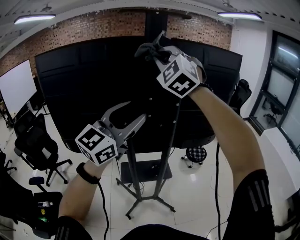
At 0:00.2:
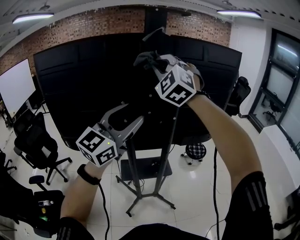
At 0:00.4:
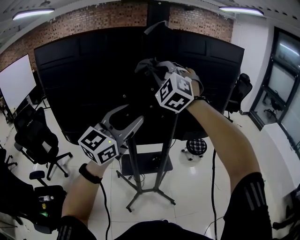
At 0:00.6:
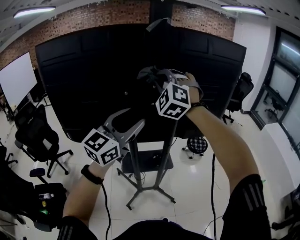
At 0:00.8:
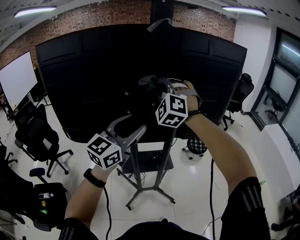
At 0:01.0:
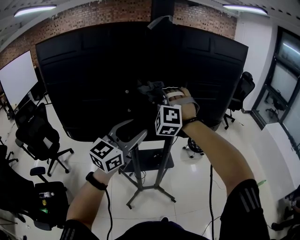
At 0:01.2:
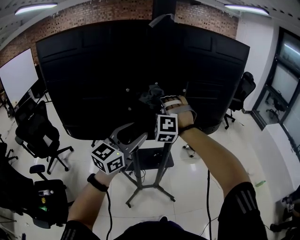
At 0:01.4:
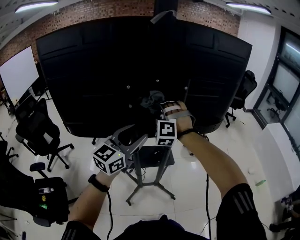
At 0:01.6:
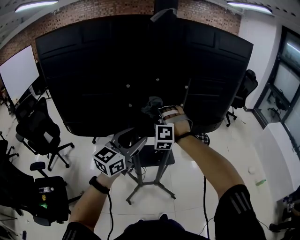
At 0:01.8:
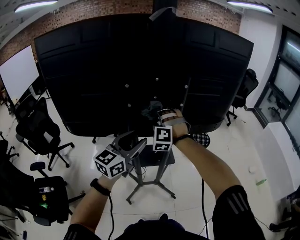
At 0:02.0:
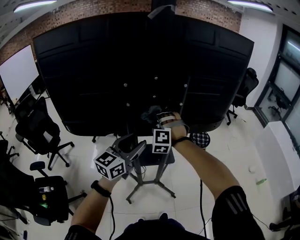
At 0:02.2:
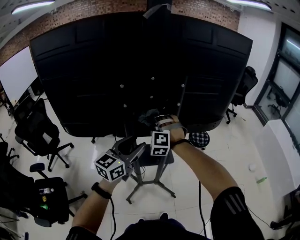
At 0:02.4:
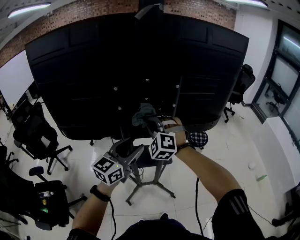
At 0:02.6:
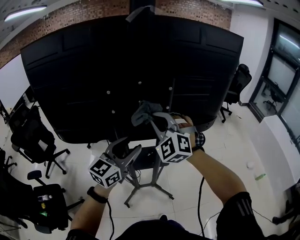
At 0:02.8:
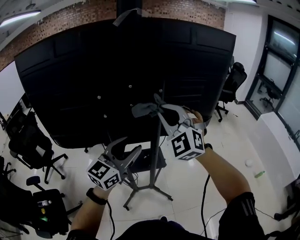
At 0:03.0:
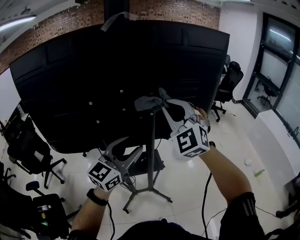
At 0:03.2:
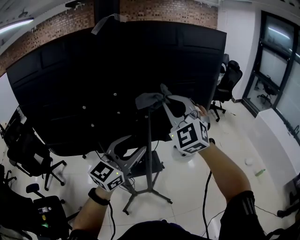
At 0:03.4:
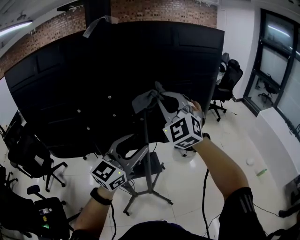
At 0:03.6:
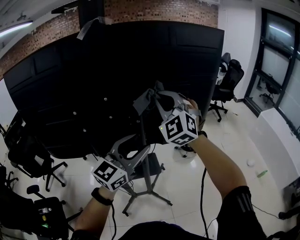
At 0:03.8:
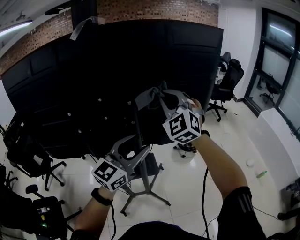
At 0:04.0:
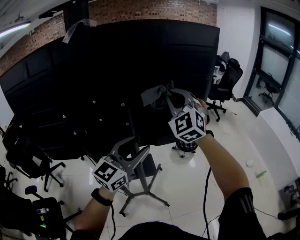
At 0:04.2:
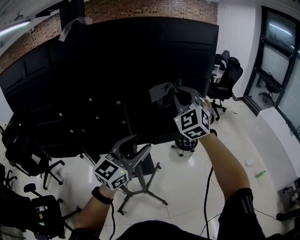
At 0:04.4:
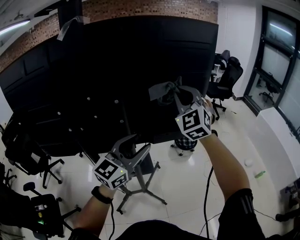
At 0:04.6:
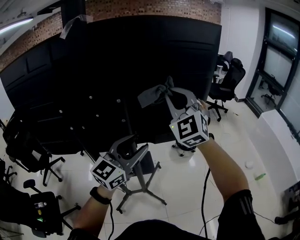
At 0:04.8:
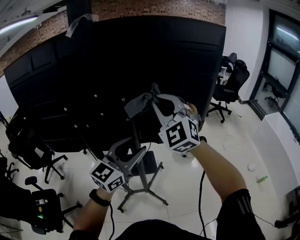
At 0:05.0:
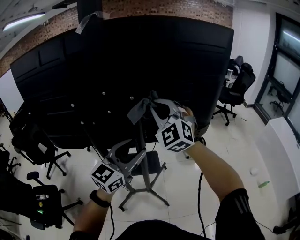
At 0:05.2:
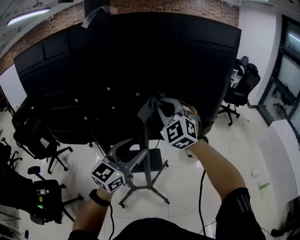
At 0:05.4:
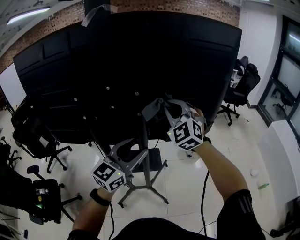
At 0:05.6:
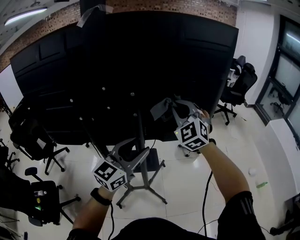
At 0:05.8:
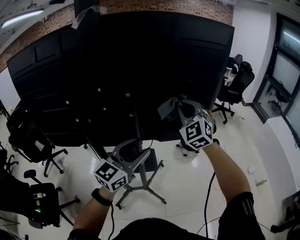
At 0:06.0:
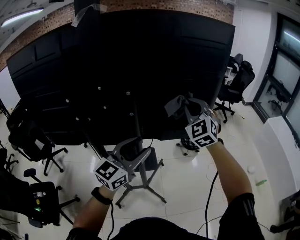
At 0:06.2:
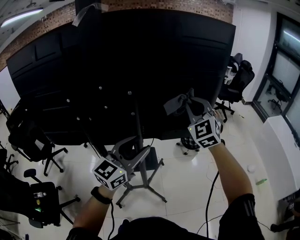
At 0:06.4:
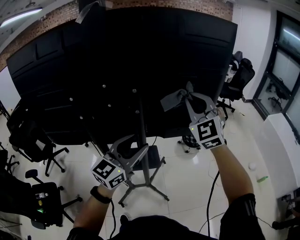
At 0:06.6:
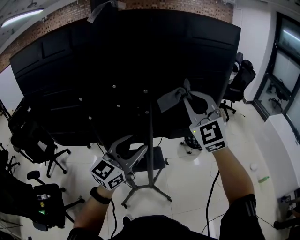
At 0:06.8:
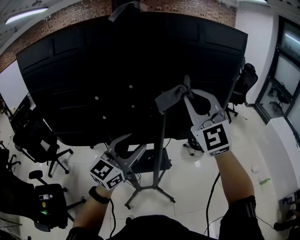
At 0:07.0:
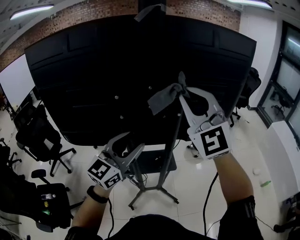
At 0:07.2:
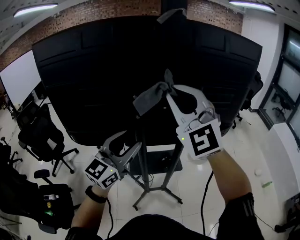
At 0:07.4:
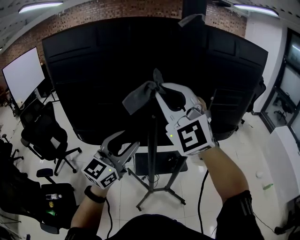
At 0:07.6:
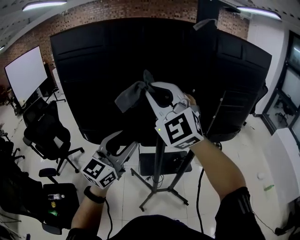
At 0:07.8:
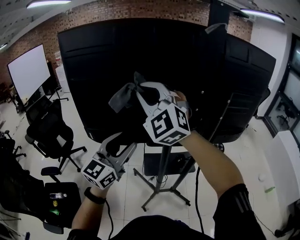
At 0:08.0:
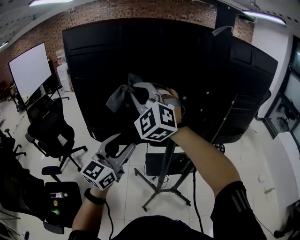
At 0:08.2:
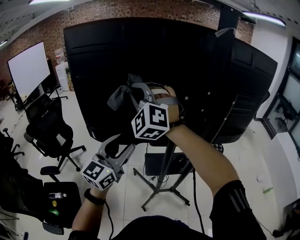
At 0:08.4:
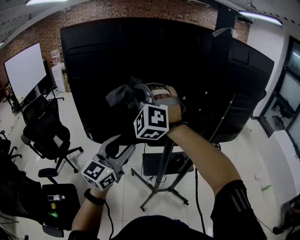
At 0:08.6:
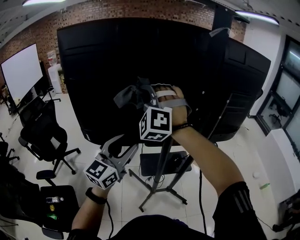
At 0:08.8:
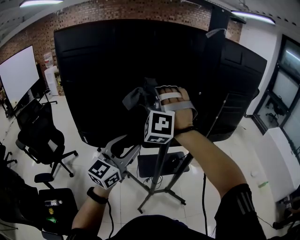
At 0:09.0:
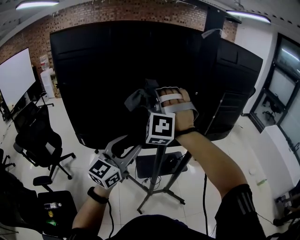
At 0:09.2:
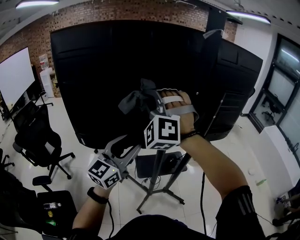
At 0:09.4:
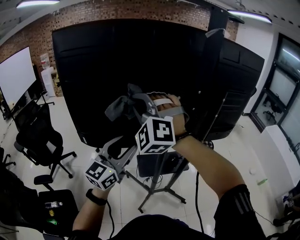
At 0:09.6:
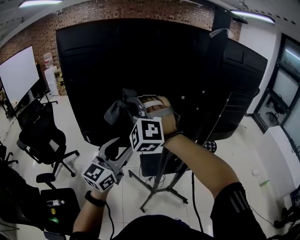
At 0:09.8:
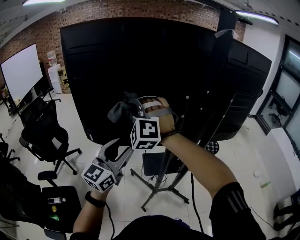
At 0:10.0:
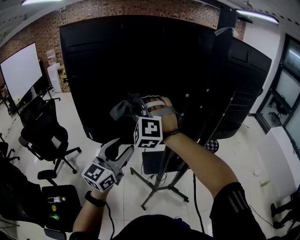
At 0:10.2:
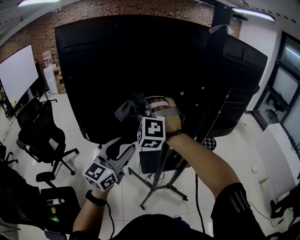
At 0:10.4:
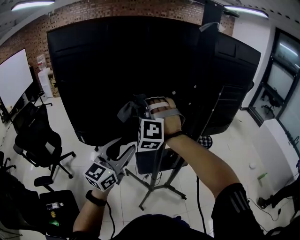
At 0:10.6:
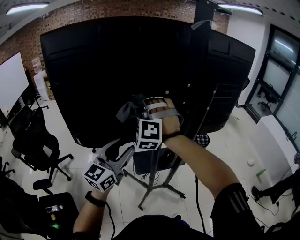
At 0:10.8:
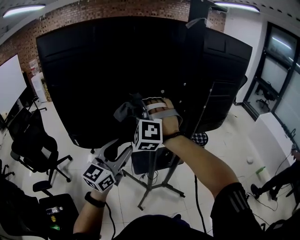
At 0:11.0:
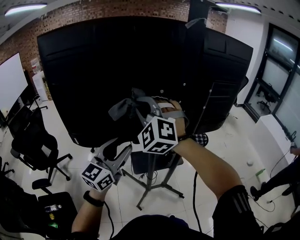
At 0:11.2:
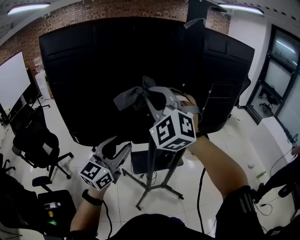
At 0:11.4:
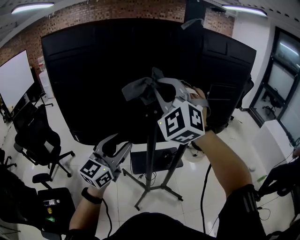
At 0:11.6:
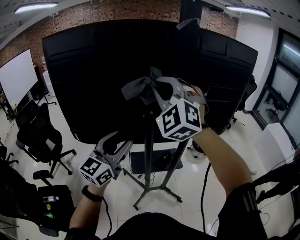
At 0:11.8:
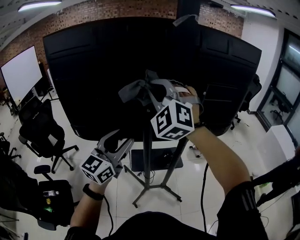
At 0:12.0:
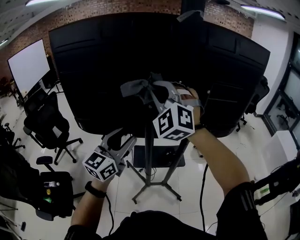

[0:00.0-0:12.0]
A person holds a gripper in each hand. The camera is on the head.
0:00.0 to 0:01.6: The left gripper heads downward, covering roughly 20 cm. Meanwhile the right gripper shifts some 35 cm downward, and rotates about 40 degrees.
0:01.6 to 0:03.0: The right gripper shifts approximately 25 cm upward and to the right, and changes its angle by about 50 degrees; the left gripper travels to the right by approximately 10 cm.
0:03.0 to 0:04.4: The right gripper goes about 20 cm forward and to the right. Meanwhile the left gripper travels to the right and forward by roughly 15 cm.
0:04.4 to 0:06.0: The right gripper is displaced downward by some 10 cm, and travels to the left and back again, about 15 cm each way.
0:06.0 to 0:07.6: The right gripper shifts about 50 cm to the left and backward, and swivels approximately 30 degrees; the left gripper goes roughly 35 cm to the left.
0:07.6 to 0:09.0: The right gripper is displaced forward and downward by roughly 10 cm, travels to the left and back again, about 15 cm each way, and changes its angle by roughly 60 degrees.
0:09.0 to 0:10.4: The right gripper moves downward, approximately 10 cm, and moves approximately 10 cm to the left and comes back.
0:10.4 to 0:12.0: The right gripper is displaced to the right and upward by approximately 15 cm, and turns by about 30 degrees. The left gripper moves to the right, about 10 cm.

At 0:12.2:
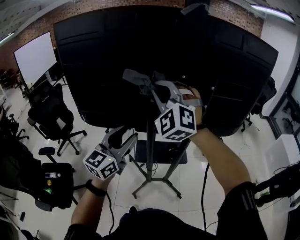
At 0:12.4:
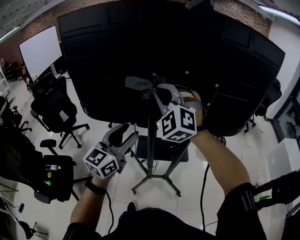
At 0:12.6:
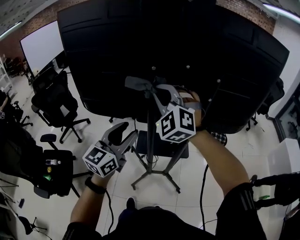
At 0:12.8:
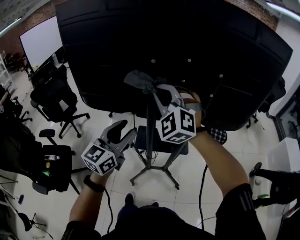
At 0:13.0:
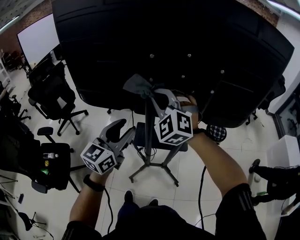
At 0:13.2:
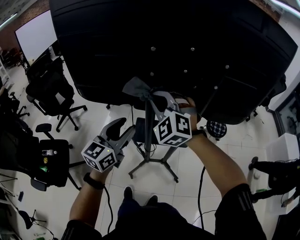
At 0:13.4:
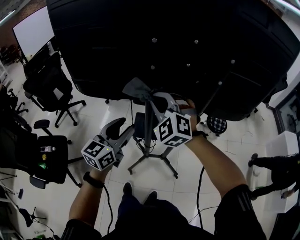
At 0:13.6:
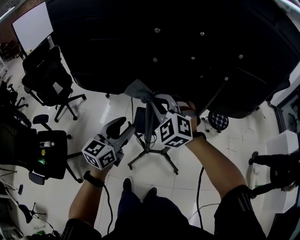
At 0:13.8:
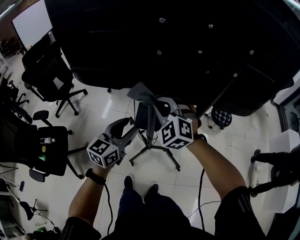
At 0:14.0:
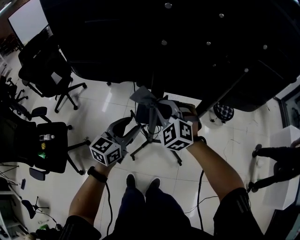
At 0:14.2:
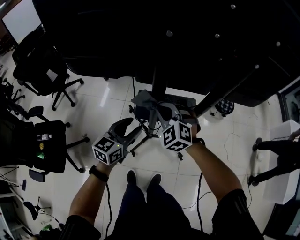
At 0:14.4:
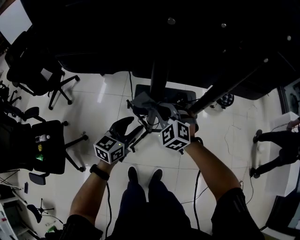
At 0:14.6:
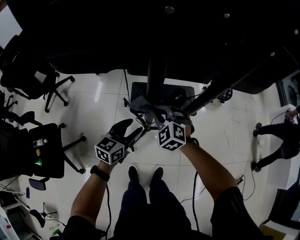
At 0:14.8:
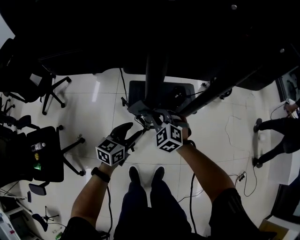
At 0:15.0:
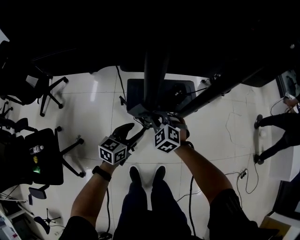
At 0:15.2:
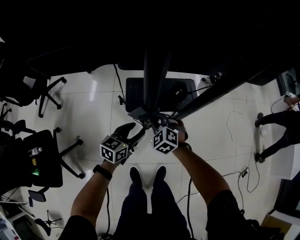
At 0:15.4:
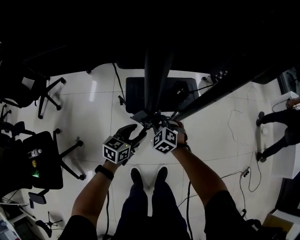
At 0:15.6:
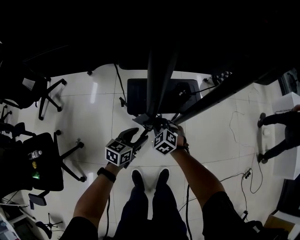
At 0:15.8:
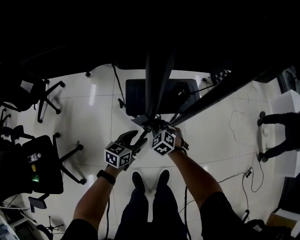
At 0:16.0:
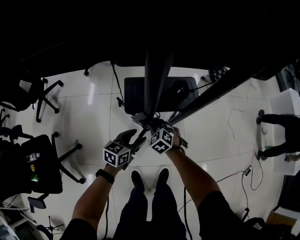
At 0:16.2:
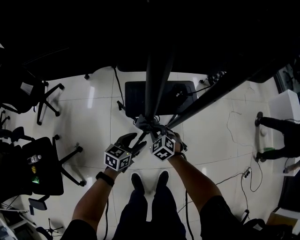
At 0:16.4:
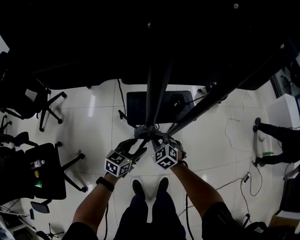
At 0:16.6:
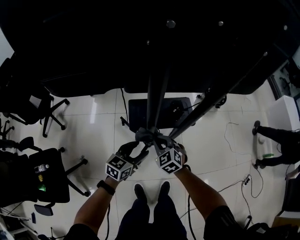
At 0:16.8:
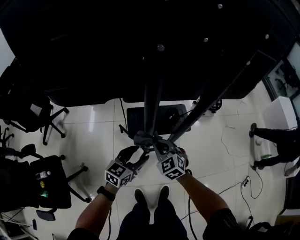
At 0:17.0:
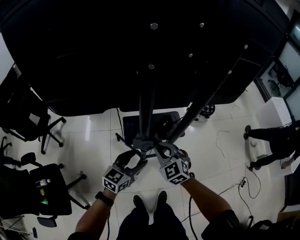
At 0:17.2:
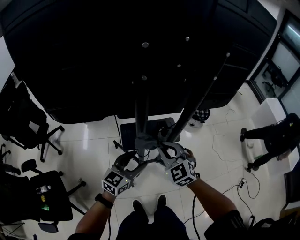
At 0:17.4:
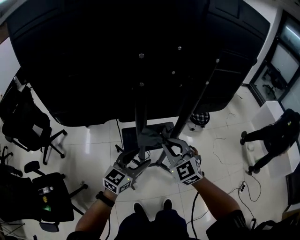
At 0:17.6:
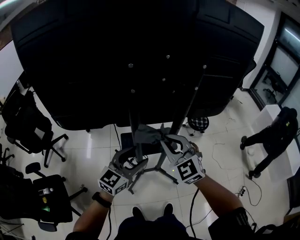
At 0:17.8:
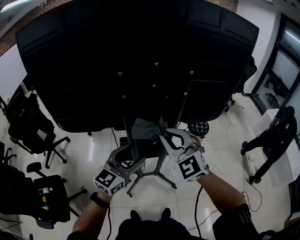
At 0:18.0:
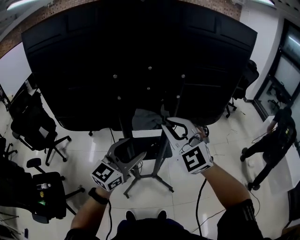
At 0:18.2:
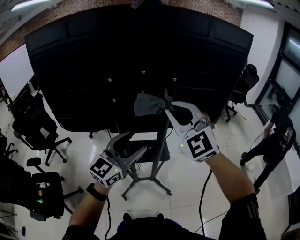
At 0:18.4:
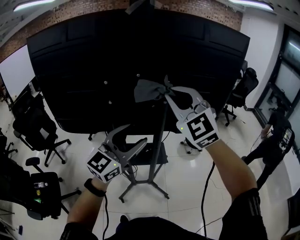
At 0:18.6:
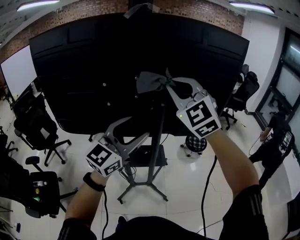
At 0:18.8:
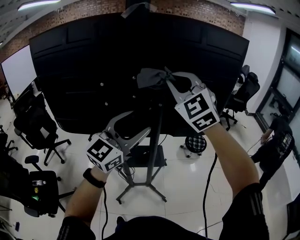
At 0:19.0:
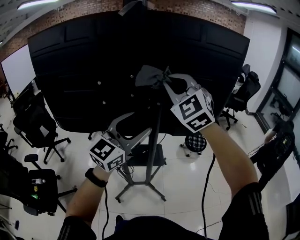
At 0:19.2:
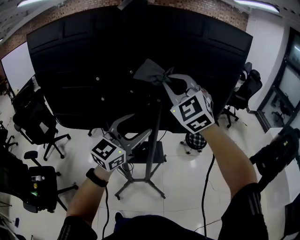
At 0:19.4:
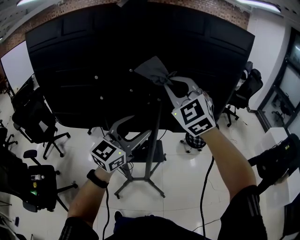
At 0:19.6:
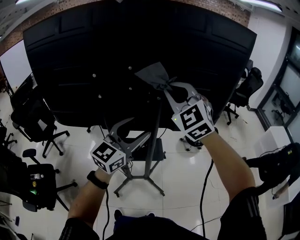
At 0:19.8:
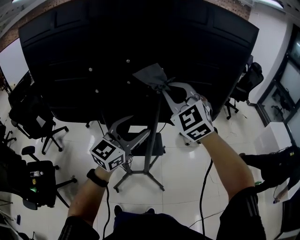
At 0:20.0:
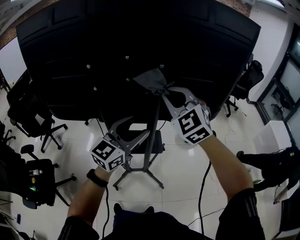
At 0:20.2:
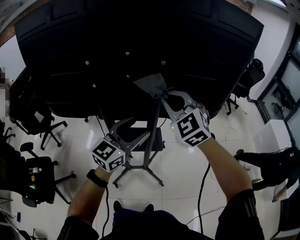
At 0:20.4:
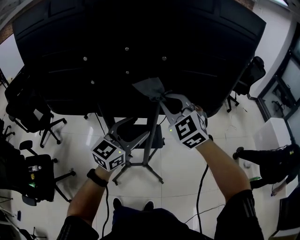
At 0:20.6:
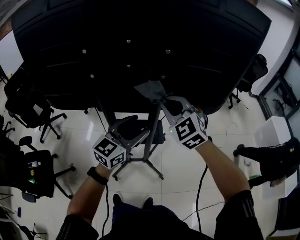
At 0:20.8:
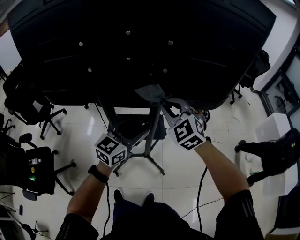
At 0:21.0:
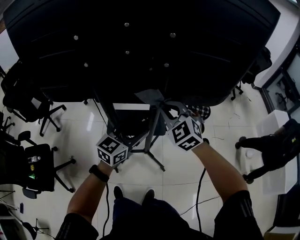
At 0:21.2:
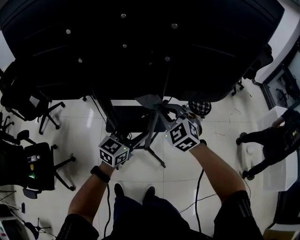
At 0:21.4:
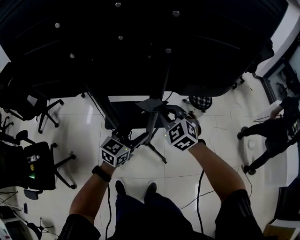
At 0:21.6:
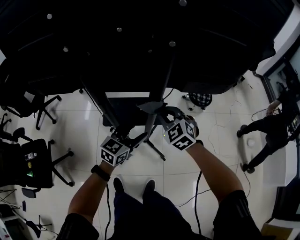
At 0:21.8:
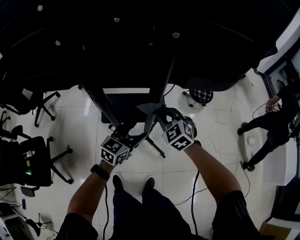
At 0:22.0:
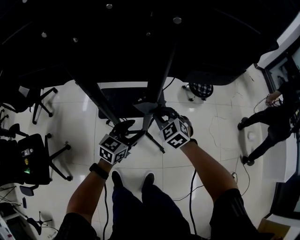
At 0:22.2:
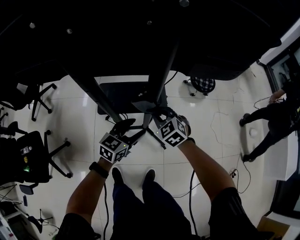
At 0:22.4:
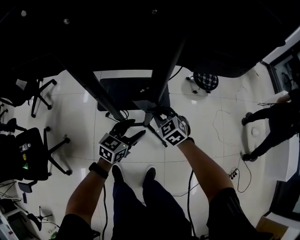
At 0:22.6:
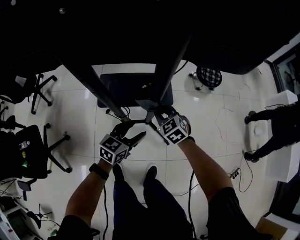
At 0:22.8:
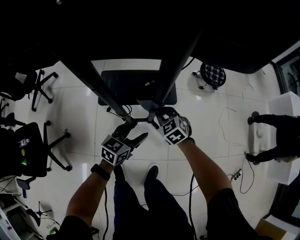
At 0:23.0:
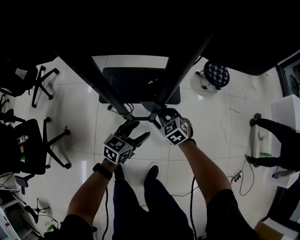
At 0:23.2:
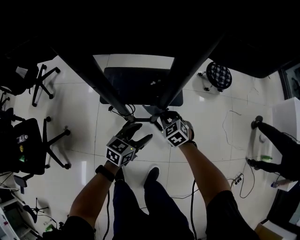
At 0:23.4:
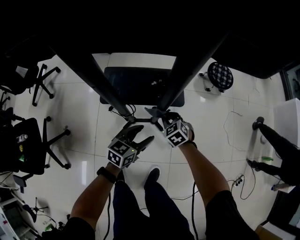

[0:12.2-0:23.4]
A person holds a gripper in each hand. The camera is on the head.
0:12.2 to 0:13.8: The two grippers go about 25 cm downward. The right gripper changes its angle by approximately 30 degrees.
0:13.8 to 0:15.4: Both grippers move downward, roughly 35 cm. The left gripper rotates approximately 30 degrees, while the right gripper swivels roughly 30 degrees.
0:15.4 to 0:17.0: The two grippers go roughly 20 cm upward. The right gripper turns by approximately 20 degrees.
0:17.0 to 0:18.6: Both grippers move upward, approximately 40 cm. The left gripper changes its angle by about 40 degrees; the right gripper rotates roughly 40 degrees.
0:18.6 to 0:20.2: The left gripper moves downward and forward, some 15 cm, while the right gripper travels downward by some 15 cm.
0:20.2 to 0:21.8: The two grippers go some 30 cm downward. The right gripper rotates roughly 30 degrees, while the left gripper changes its angle by approximately 30 degrees.
0:21.8 to 0:23.4: Both grippers move downward, some 25 cm.
